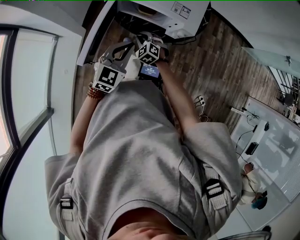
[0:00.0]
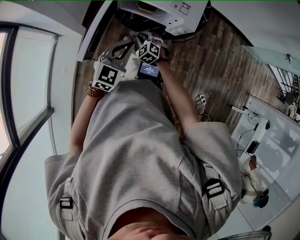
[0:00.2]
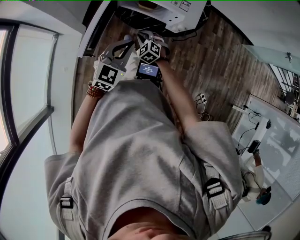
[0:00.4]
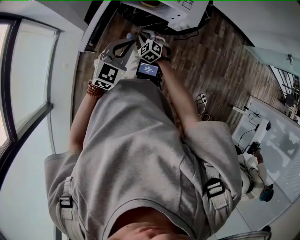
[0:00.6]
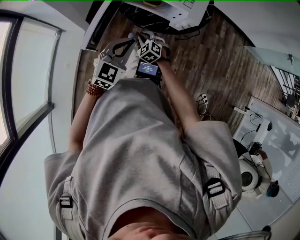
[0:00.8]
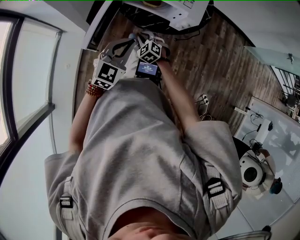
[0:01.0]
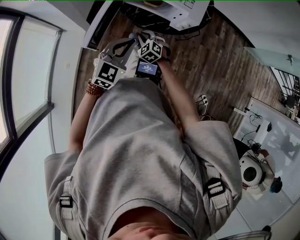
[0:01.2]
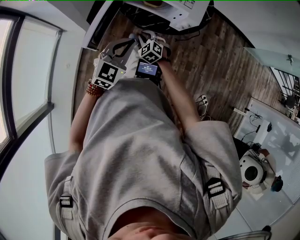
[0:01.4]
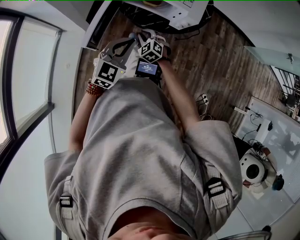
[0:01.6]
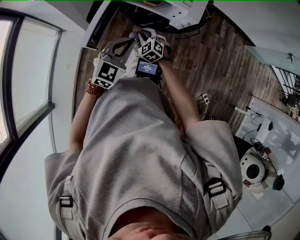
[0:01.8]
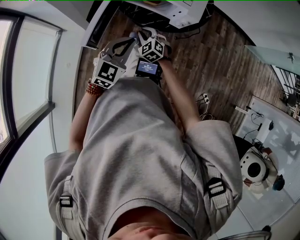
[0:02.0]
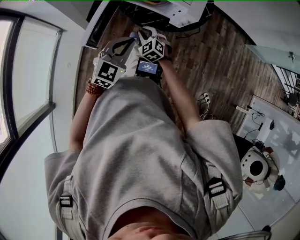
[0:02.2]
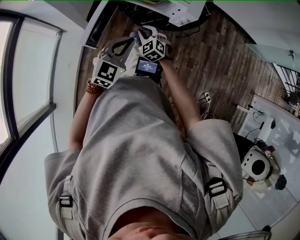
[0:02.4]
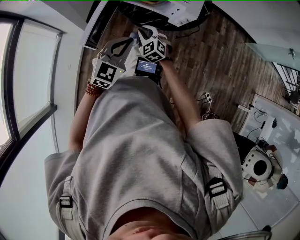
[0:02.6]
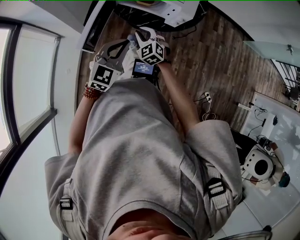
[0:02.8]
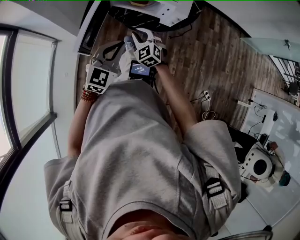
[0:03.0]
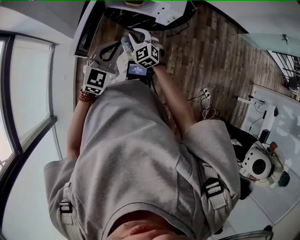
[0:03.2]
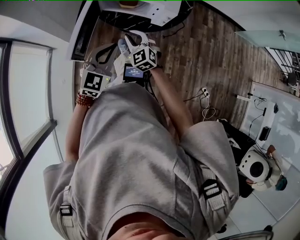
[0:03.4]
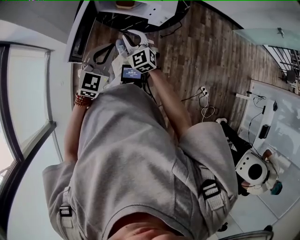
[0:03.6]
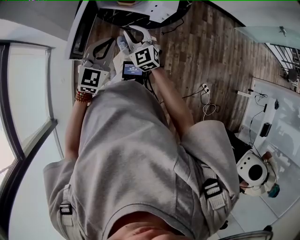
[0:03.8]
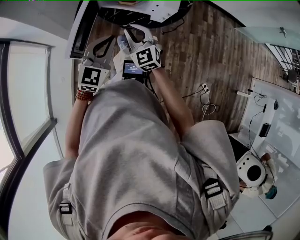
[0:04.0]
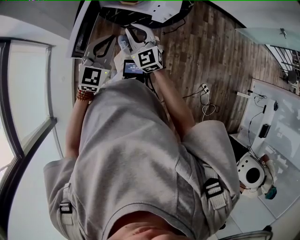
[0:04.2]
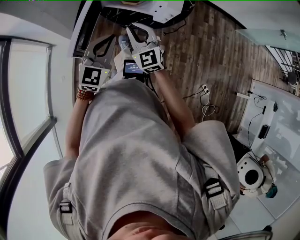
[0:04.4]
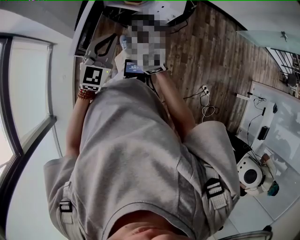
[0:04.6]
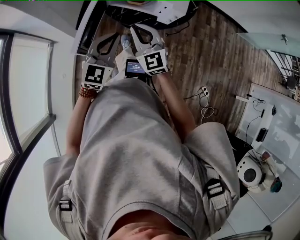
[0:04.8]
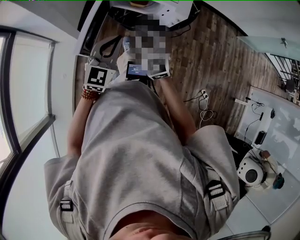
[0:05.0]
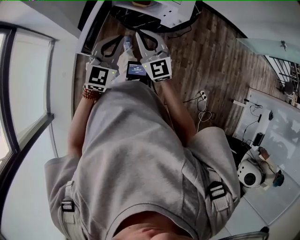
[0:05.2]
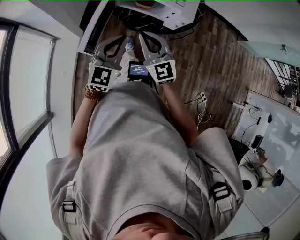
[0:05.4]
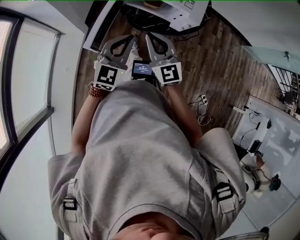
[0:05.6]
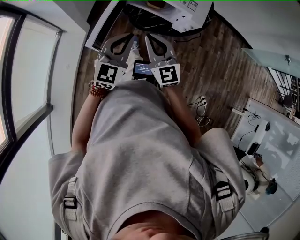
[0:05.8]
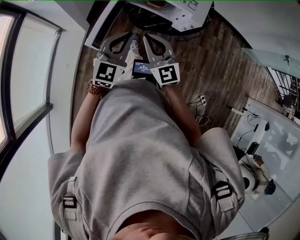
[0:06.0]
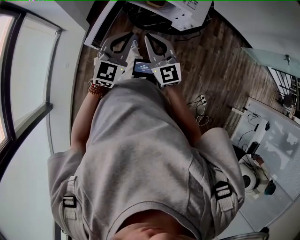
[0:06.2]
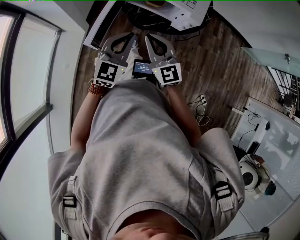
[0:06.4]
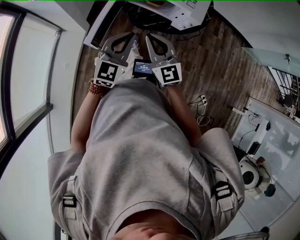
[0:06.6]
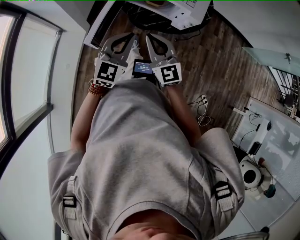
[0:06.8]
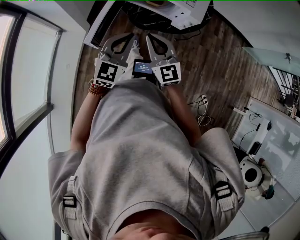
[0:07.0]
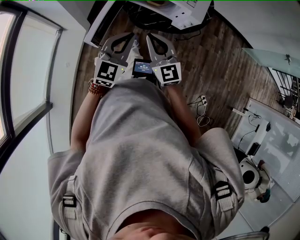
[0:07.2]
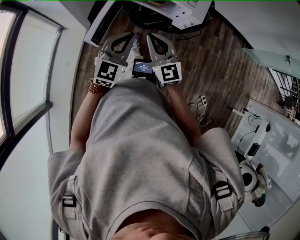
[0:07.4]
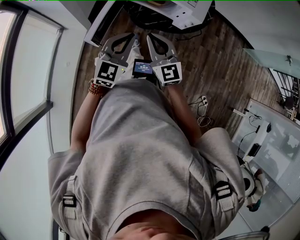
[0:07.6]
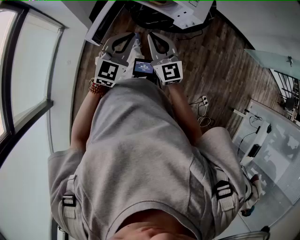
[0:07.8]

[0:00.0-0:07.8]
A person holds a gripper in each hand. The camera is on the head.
0.0 to 1.6 s: Both grippers move backward, approximately 5 cm.
1.6 to 3.2 s: The right gripper goes some 10 cm upward.
3.2 to 4.6 s: The right gripper moves upward, about 10 cm.
4.6 to 6.2 s: The right gripper shifts by some 5 cm.
6.2 to 7.8 s: The grippers stay close to where they were, moving slightly.

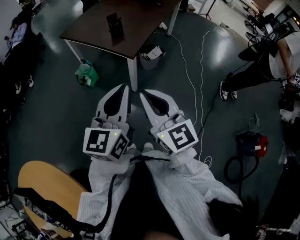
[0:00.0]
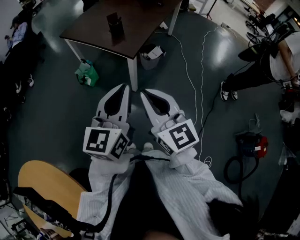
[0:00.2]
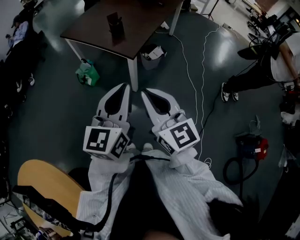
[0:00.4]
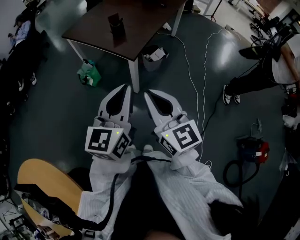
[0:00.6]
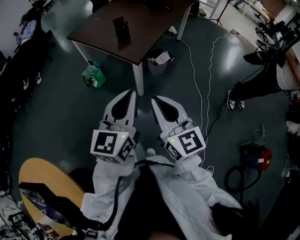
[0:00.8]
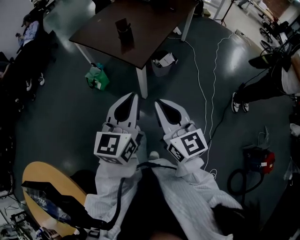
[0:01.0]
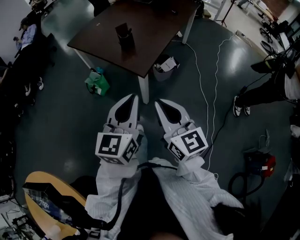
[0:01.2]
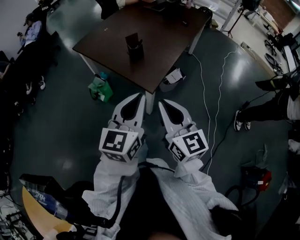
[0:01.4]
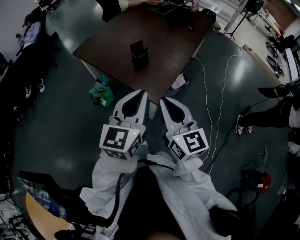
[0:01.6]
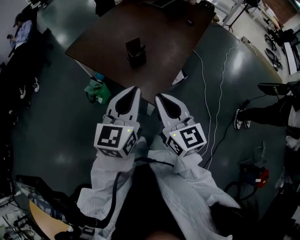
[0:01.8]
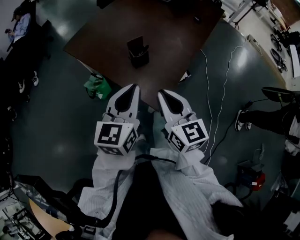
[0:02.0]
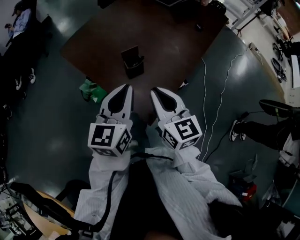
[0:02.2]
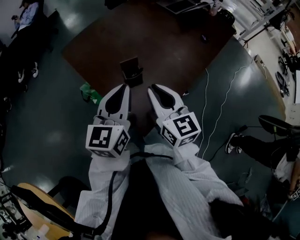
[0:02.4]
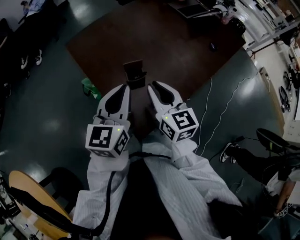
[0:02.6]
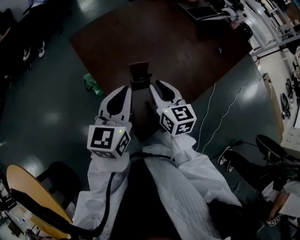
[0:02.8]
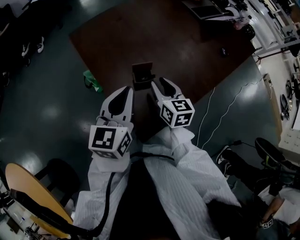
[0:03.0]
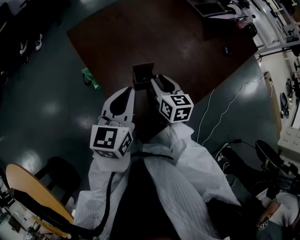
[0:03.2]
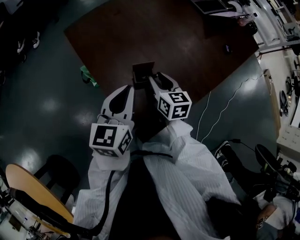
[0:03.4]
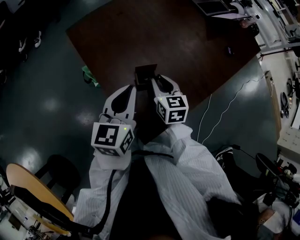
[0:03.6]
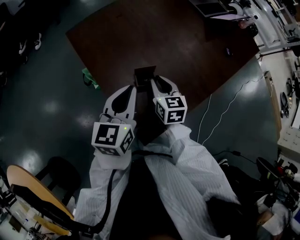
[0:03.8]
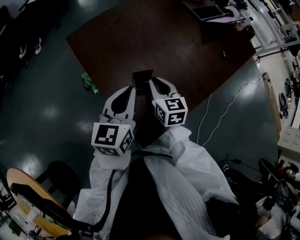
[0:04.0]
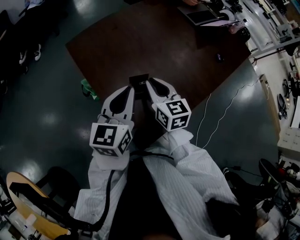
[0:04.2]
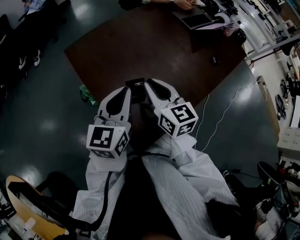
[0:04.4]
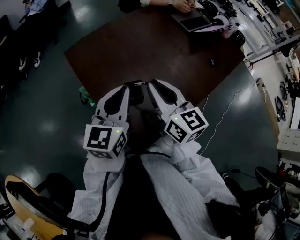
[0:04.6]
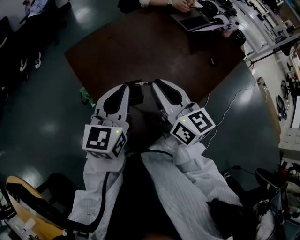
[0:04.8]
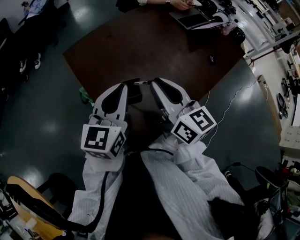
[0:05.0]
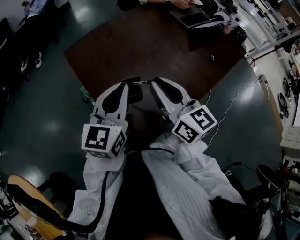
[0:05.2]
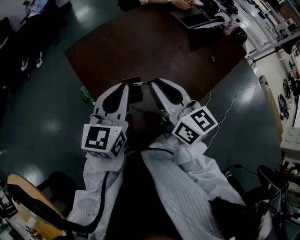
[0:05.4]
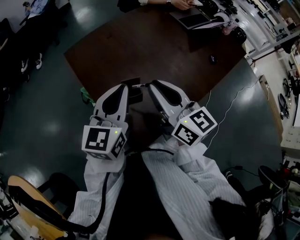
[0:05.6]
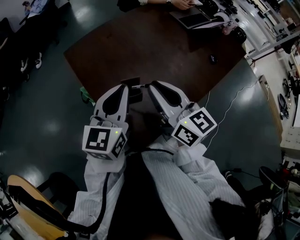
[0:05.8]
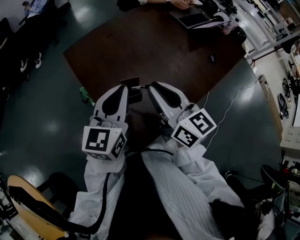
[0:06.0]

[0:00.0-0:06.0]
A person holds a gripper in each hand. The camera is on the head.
0.0 to 1.6 s: The grippers both shift forward by approximately 30 cm.
1.6 to 3.0 s: The right gripper heads forward and downward, covering approximately 40 cm, rotates some 30 degrees, and opens its fingers. The left gripper goes about 30 cm forward, and swivels some 30 degrees.
3.0 to 4.4 s: The left gripper changes place by roughly 5 cm. The right gripper shifts about 10 cm upward.
4.4 to 6.0 s: The right gripper heads upward, covering about 5 cm.

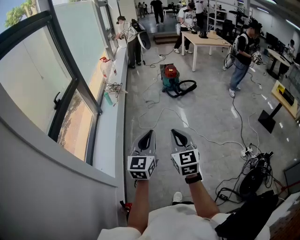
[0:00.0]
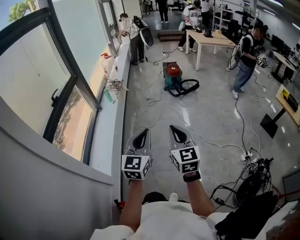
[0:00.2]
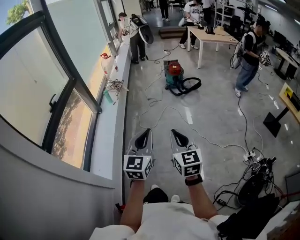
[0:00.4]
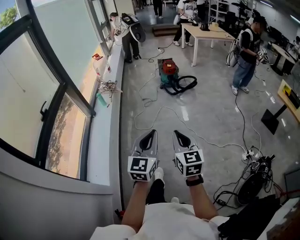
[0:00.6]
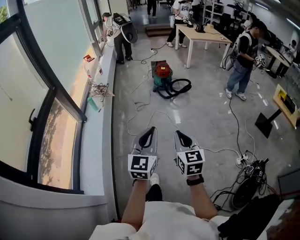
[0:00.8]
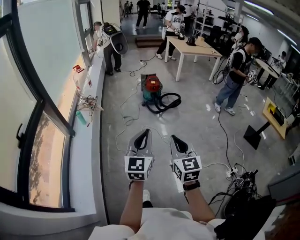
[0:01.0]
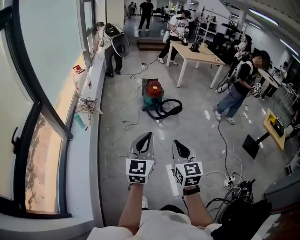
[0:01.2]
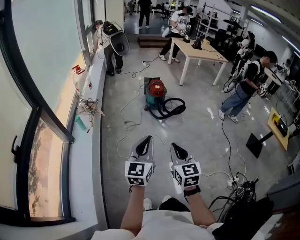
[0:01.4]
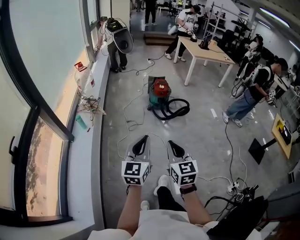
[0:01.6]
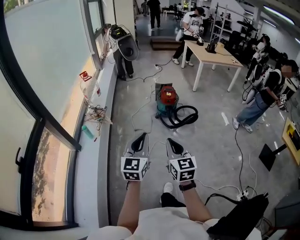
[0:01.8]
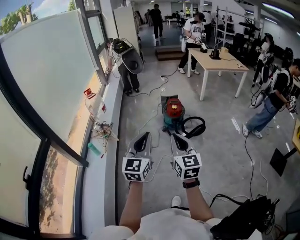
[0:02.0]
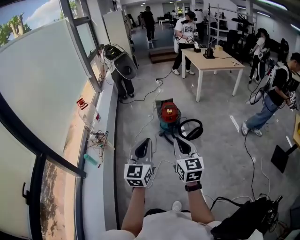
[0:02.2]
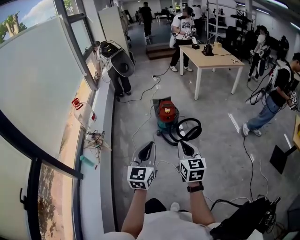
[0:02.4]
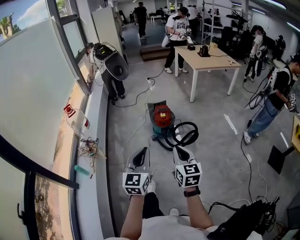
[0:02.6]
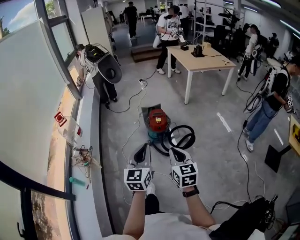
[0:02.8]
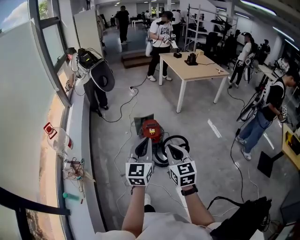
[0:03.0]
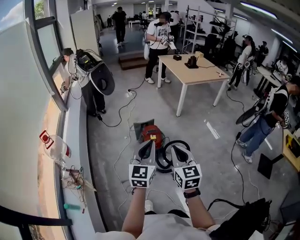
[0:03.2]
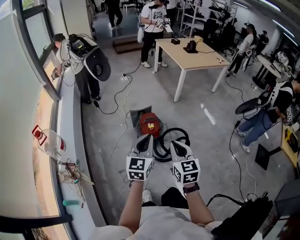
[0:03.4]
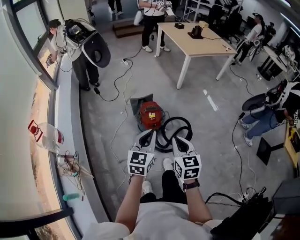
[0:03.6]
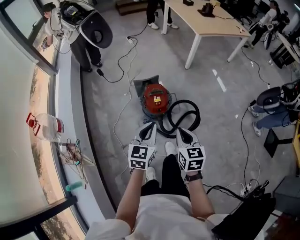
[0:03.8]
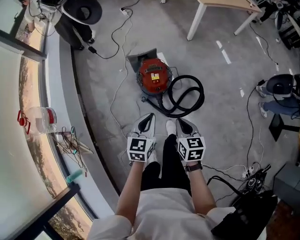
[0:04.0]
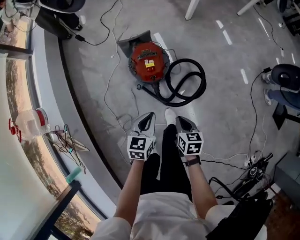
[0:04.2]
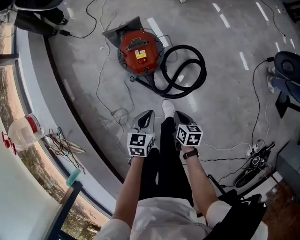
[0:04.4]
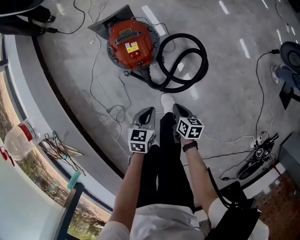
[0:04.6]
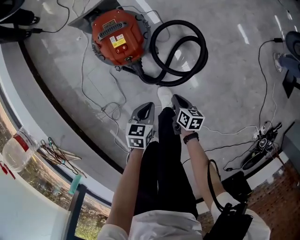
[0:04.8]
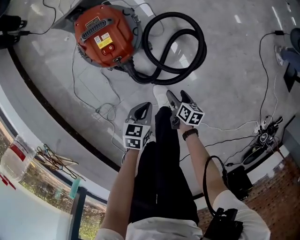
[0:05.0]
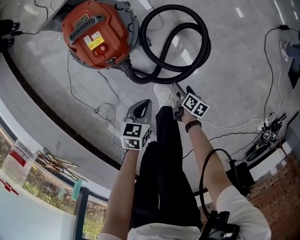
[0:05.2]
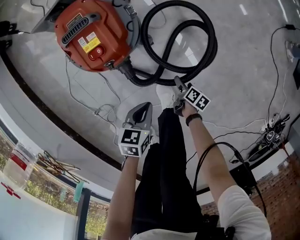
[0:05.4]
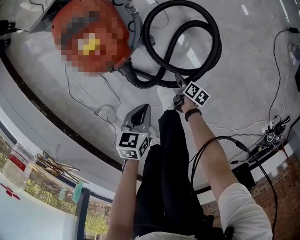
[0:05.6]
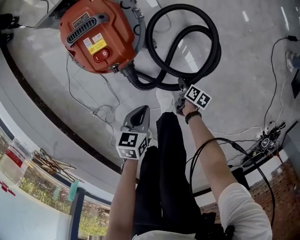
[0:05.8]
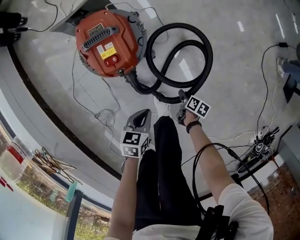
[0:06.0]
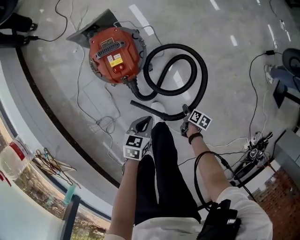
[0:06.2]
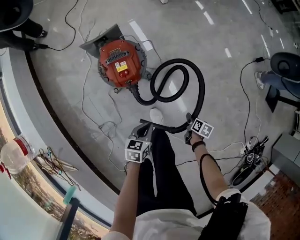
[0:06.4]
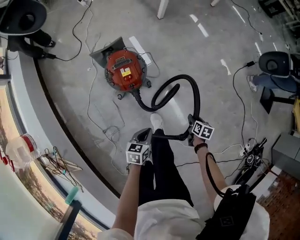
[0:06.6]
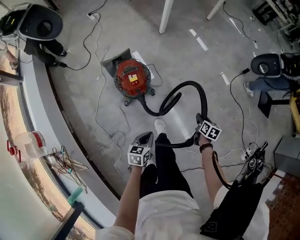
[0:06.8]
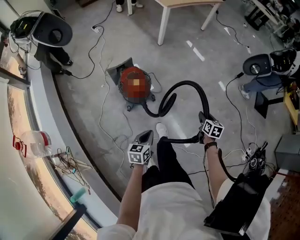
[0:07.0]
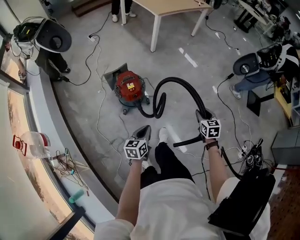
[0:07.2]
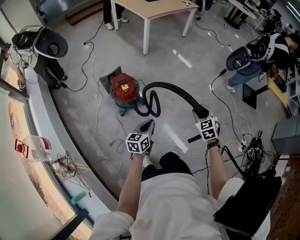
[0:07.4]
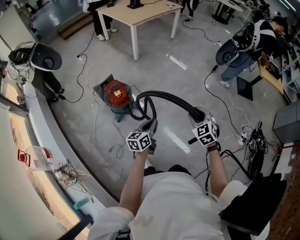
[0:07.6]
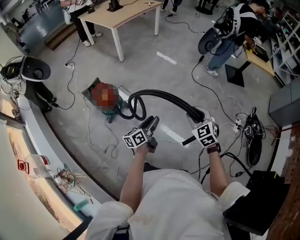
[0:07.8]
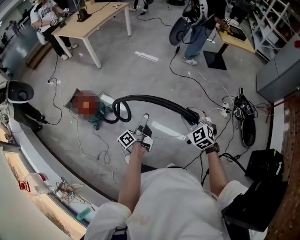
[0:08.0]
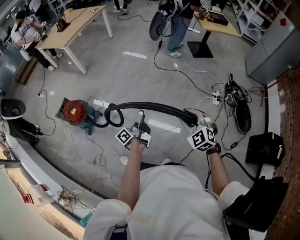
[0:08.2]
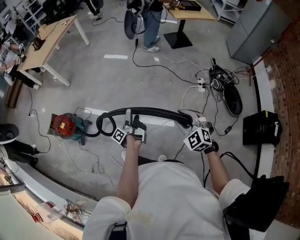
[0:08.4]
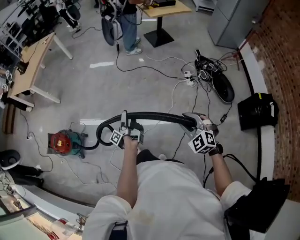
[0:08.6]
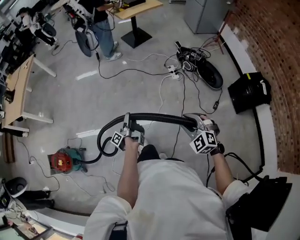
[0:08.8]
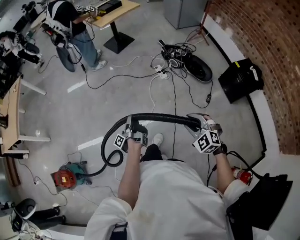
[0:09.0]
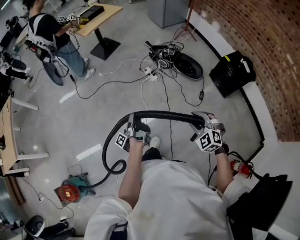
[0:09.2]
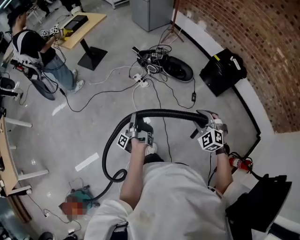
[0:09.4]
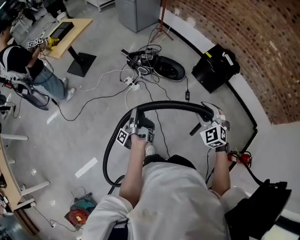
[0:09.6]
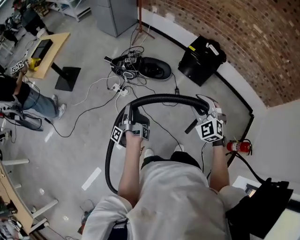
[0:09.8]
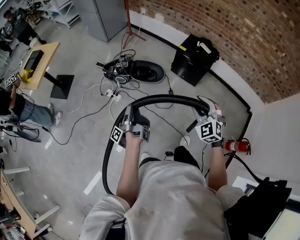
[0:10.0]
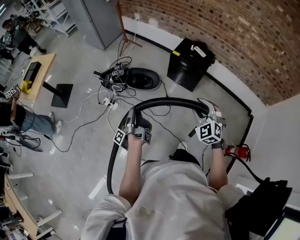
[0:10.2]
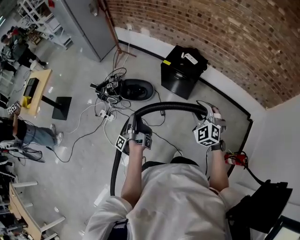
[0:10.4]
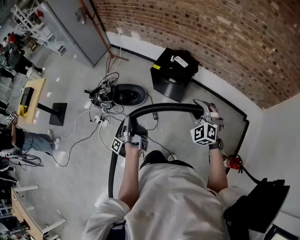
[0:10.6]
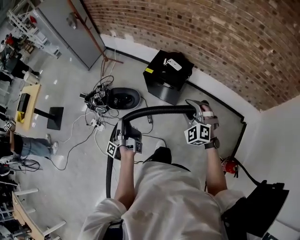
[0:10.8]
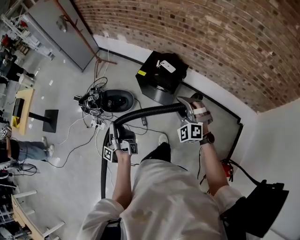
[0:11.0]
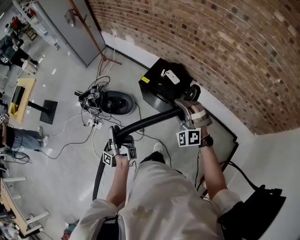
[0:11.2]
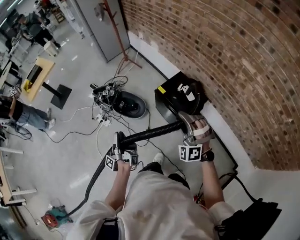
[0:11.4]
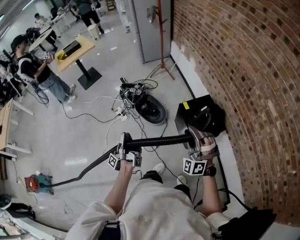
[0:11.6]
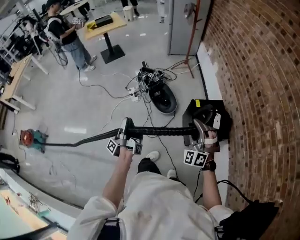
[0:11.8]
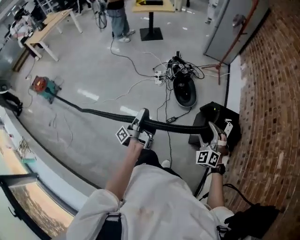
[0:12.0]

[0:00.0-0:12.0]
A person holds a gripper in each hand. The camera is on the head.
0.0 to 1.6 s: The right gripper shifts by some 50 cm.
1.6 to 3.0 s: The right gripper goes up and down, about 10 cm each way, reversing 2 times.
3.0 to 4.4 s: The right gripper heads downward, covering some 60 cm, and tips its fingers downward by about 40 degrees.
4.4 to 6.0 s: The right gripper goes roughly 35 cm downward, swivels about 40 degrees, and opens and closes again.
6.0 to 7.6 s: The right gripper travels upward by about 70 cm, and rolls counterclockwise, seen from behind, by some 80 degrees.
7.6 to 9.0 s: The right gripper shifts by about 70 cm, and rotates about 40 degrees.
9.0 to 10.4 s: The right gripper ends up roughly 50 cm from where it was, and rotates some 50 degrees.
10.4 to 12.0 s: The right gripper ends up roughly 25 cm from where it was, and swivels roughly 60 degrees.
